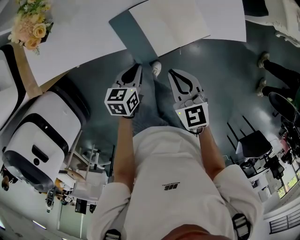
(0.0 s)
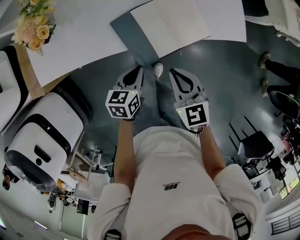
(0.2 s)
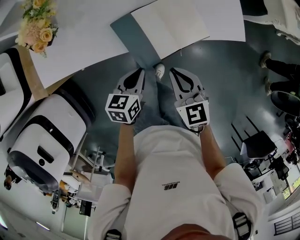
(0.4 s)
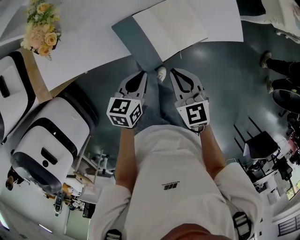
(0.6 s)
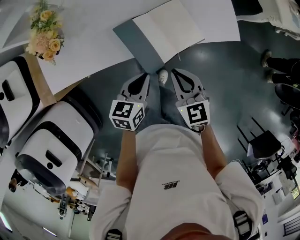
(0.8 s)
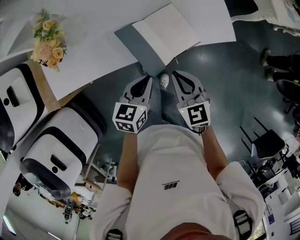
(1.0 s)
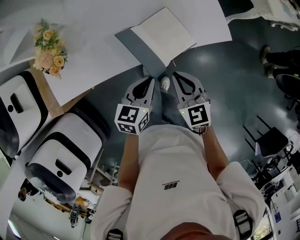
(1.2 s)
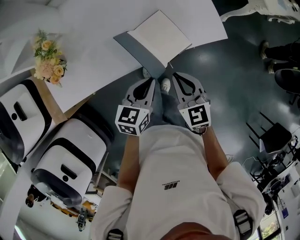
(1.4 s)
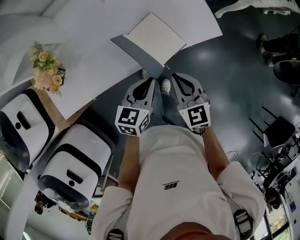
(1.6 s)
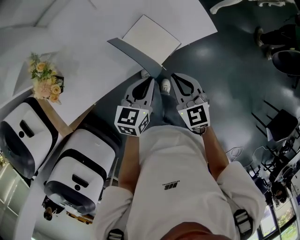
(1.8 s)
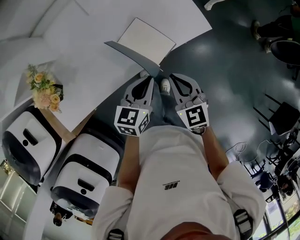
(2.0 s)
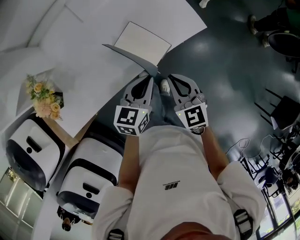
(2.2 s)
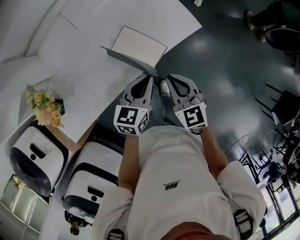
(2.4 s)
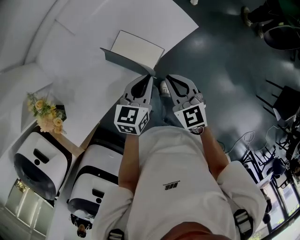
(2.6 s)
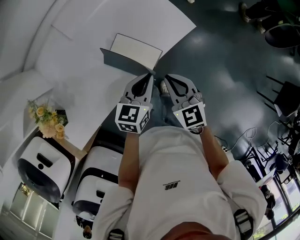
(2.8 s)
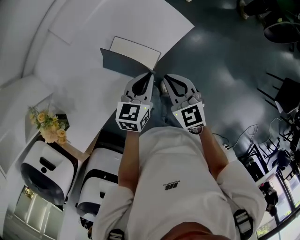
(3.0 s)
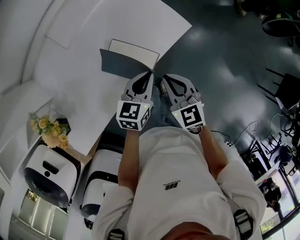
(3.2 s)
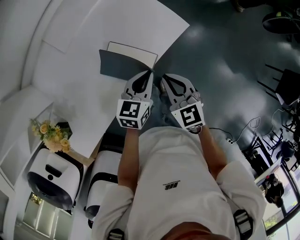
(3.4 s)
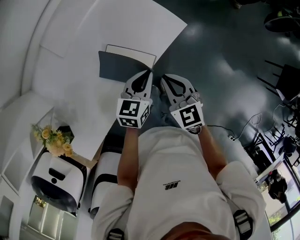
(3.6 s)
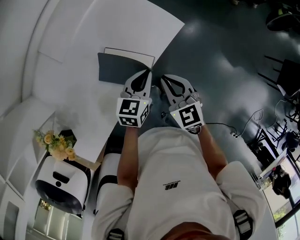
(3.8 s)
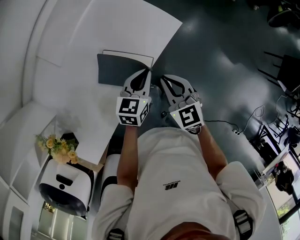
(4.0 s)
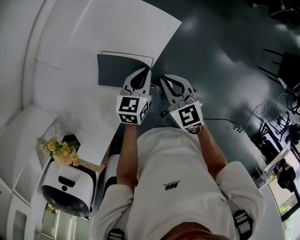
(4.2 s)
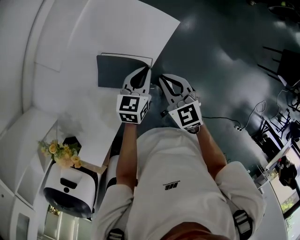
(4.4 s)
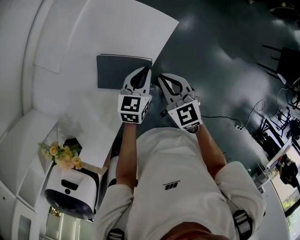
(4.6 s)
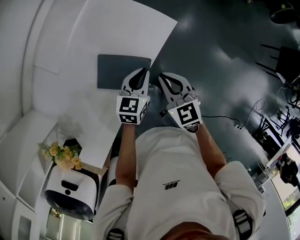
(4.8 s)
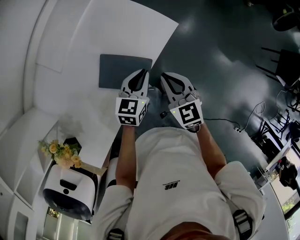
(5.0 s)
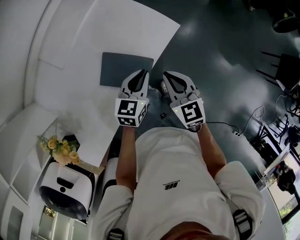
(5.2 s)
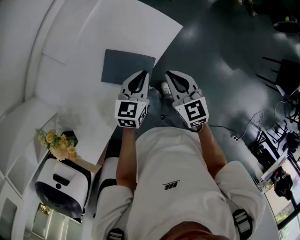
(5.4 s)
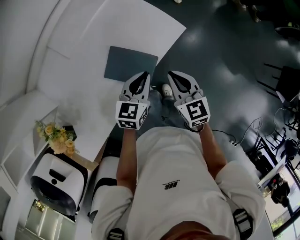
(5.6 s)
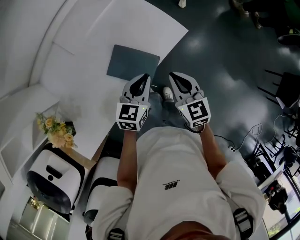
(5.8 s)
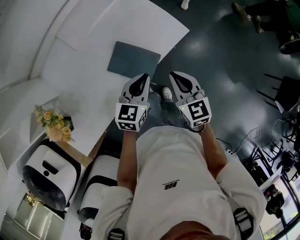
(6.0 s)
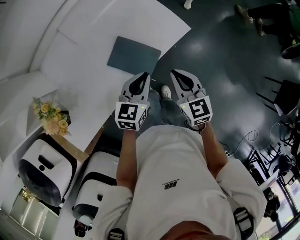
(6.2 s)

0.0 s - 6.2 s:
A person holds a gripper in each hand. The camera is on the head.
0.0 s - 1.6 s: The right gripper travels upward and to the right by some 10 cm; the left gripper is displaced upward and to the right by some 20 cm, and rotates roughly 30 degrees.
1.6 s - 3.2 s: The right gripper moves forward and to the right, some 10 cm, while the left gripper goes approximately 15 cm forward and to the right, and turns by about 20 degrees.
3.2 s - 4.6 s: The left gripper shifts by approximately 5 cm.
4.6 s - 6.2 s: The right gripper moves upward, about 5 cm. The left gripper moves upward and backward, approximately 10 cm.

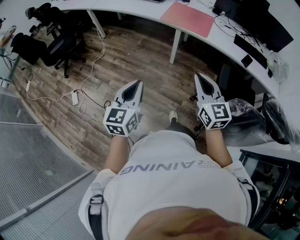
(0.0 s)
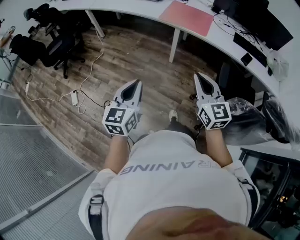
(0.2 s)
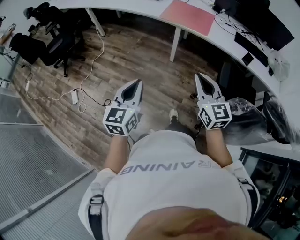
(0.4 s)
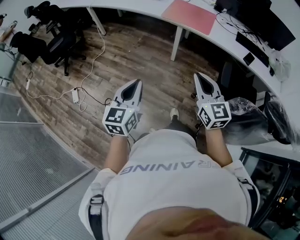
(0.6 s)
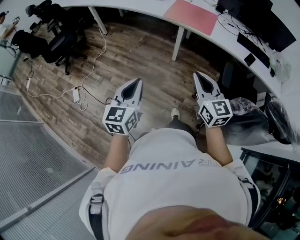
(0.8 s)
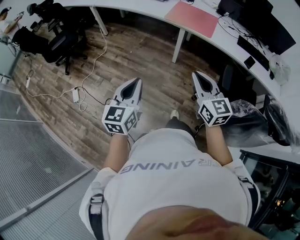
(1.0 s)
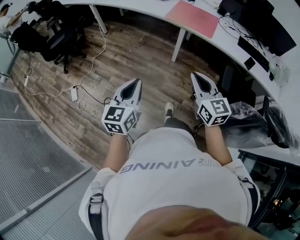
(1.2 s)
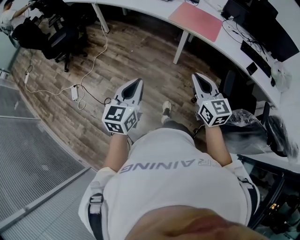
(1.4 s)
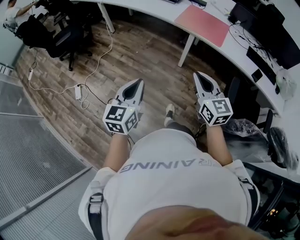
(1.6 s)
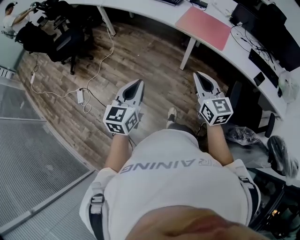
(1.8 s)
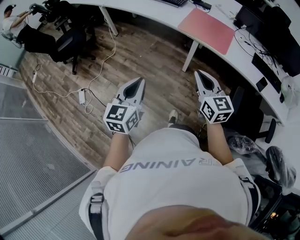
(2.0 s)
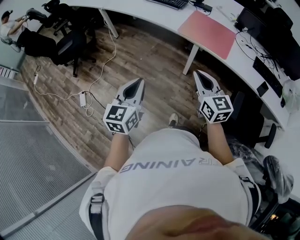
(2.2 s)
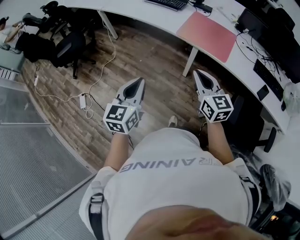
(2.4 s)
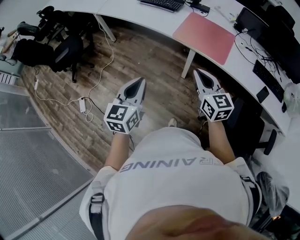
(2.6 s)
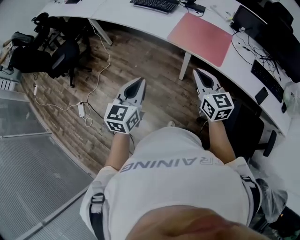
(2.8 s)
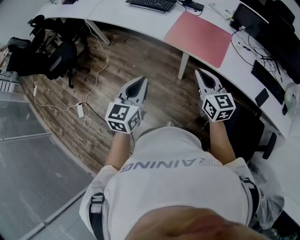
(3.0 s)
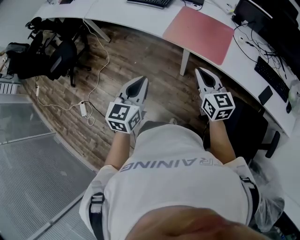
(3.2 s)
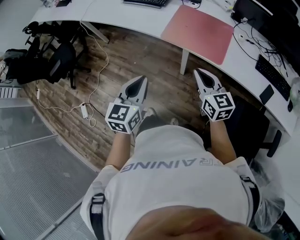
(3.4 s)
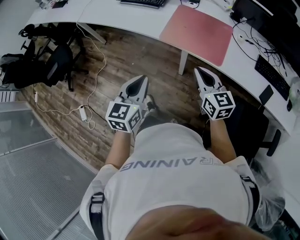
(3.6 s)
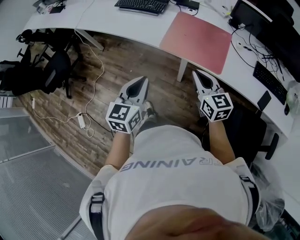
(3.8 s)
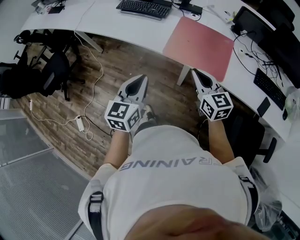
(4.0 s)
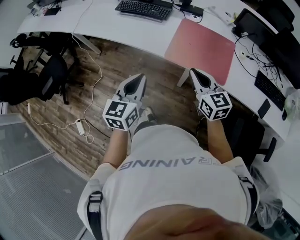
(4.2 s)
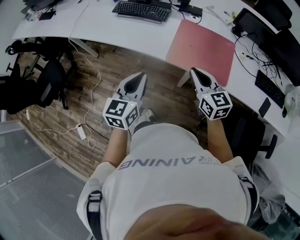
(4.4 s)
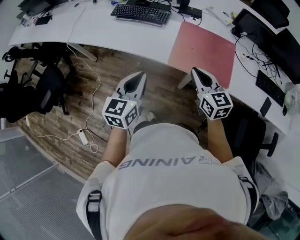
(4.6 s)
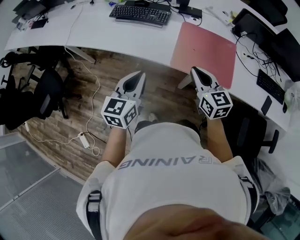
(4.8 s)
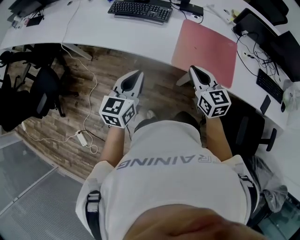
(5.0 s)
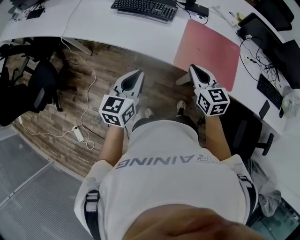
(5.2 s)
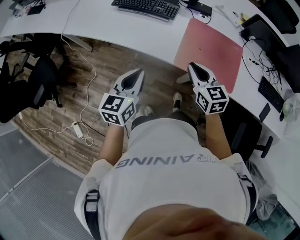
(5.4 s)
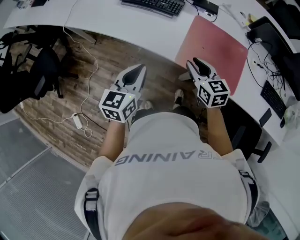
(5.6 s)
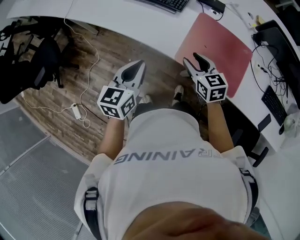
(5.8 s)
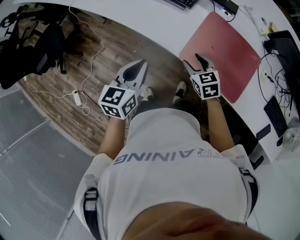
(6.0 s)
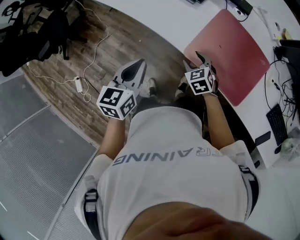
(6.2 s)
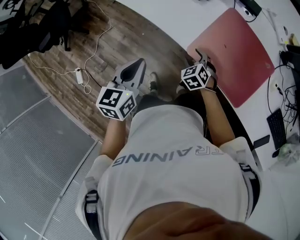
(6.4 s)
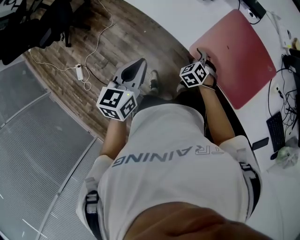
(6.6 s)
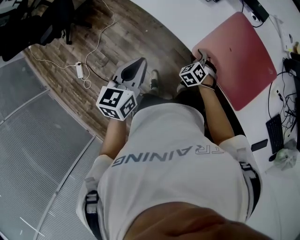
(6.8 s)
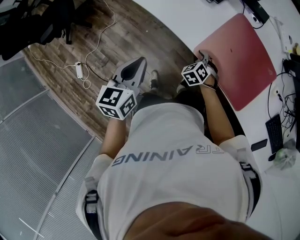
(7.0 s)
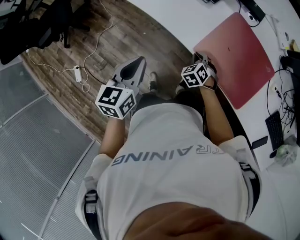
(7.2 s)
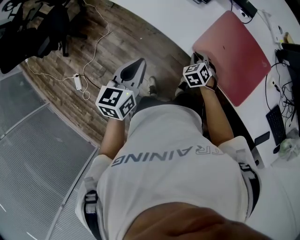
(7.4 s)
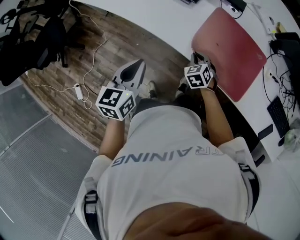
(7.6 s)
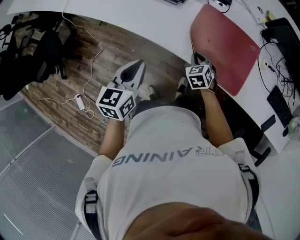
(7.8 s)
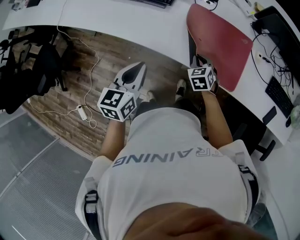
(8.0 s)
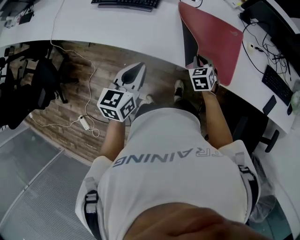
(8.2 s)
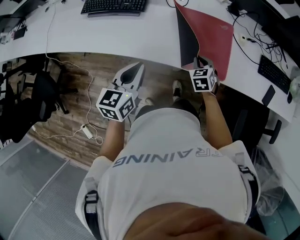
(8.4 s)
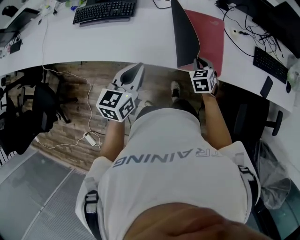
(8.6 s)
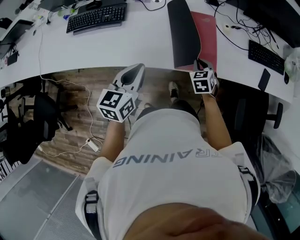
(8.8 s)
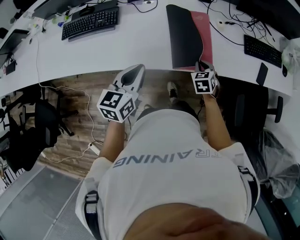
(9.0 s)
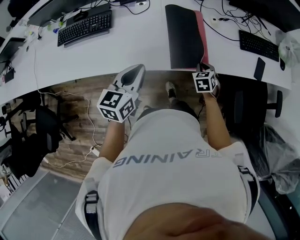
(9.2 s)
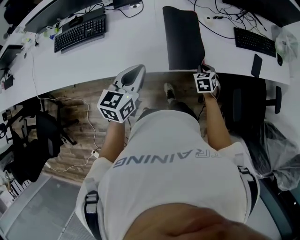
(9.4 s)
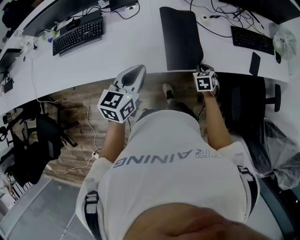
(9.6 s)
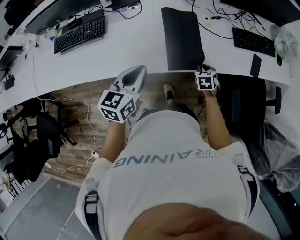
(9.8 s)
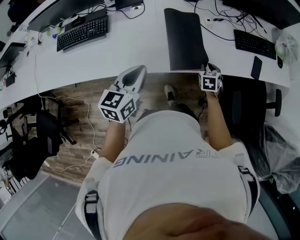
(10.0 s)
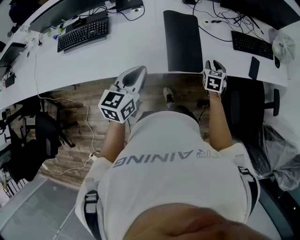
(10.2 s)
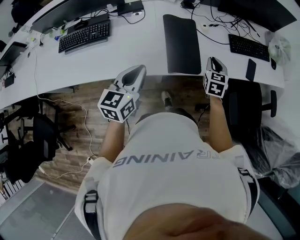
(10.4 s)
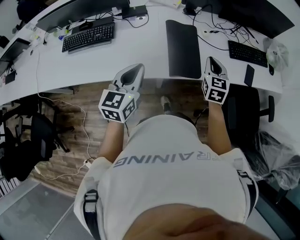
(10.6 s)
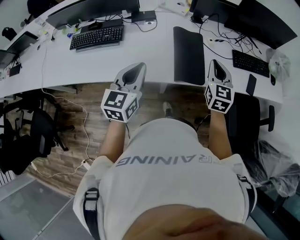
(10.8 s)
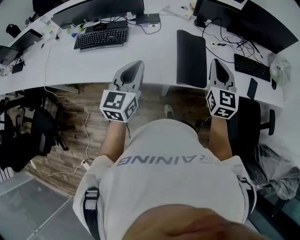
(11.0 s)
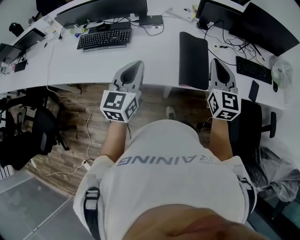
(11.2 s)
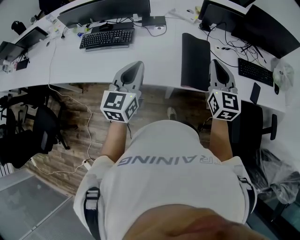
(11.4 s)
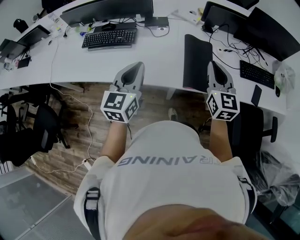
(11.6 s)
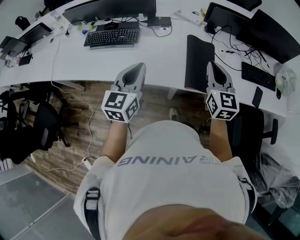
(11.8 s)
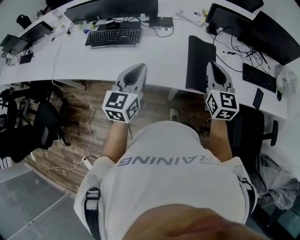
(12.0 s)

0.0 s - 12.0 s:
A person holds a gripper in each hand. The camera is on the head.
0.0 s - 1.6 s: The right gripper shifts approximately 10 cm forward and to the left. The left gripper is displaced forward by approximately 5 cm.
1.6 s - 3.0 s: The two grippers go roughly 30 cm forward and to the right.
3.0 s - 4.4 s: The right gripper moves forward and to the left, some 20 cm. Meanwhile the left gripper goes about 25 cm forward.
4.4 s - 6.0 s: The right gripper heads downward and forward, covering roughly 25 cm, changes its angle by some 30 degrees, and opens up; the left gripper shifts some 15 cm forward and downward.
6.0 s - 7.6 s: The right gripper travels downward by roughly 10 cm, rotates roughly 20 degrees, and closes.
7.6 s - 9.0 s: The right gripper ends up some 30 cm from where it was, and swivels some 40 degrees. Meanwhile the left gripper changes place by roughly 20 cm, and turns by approximately 40 degrees.
9.0 s - 10.4 s: The left gripper ends up approximately 5 cm from where it was; the right gripper moves upward and to the right, approximately 15 cm, and rotates approximately 30 degrees.
10.4 s - 12.0 s: The right gripper heads upward and to the left, covering about 25 cm, and swivels approximately 30 degrees; the left gripper is displaced to the left and upward by approximately 10 cm.

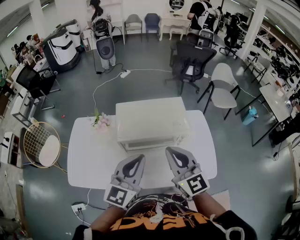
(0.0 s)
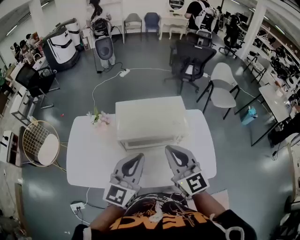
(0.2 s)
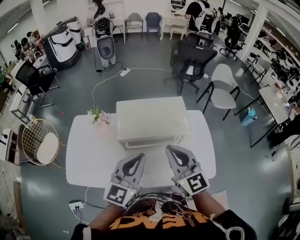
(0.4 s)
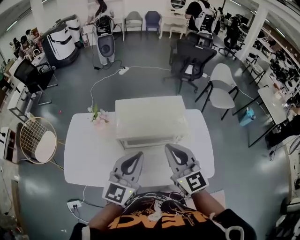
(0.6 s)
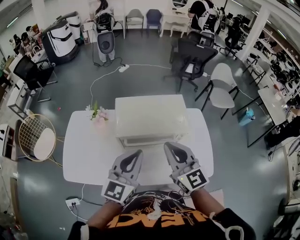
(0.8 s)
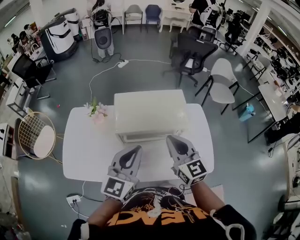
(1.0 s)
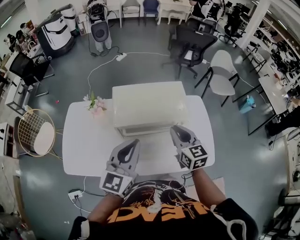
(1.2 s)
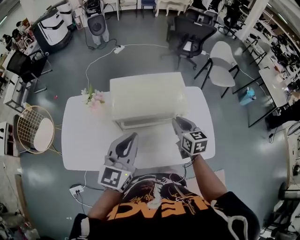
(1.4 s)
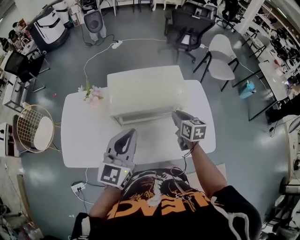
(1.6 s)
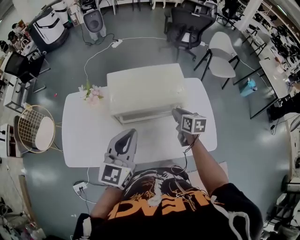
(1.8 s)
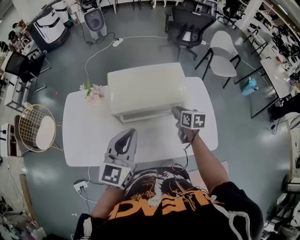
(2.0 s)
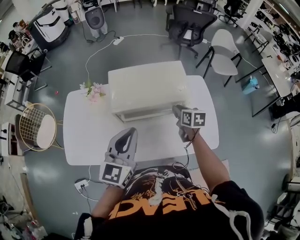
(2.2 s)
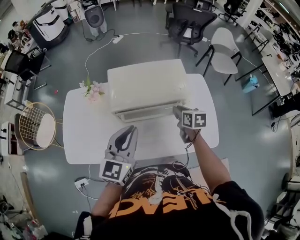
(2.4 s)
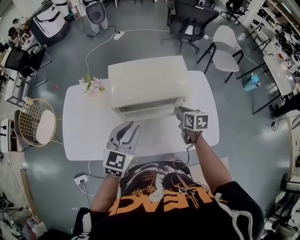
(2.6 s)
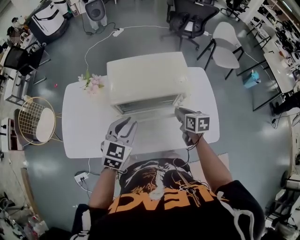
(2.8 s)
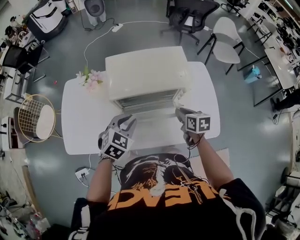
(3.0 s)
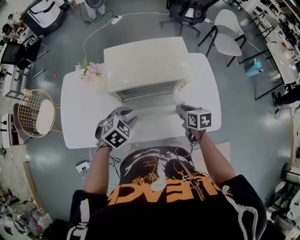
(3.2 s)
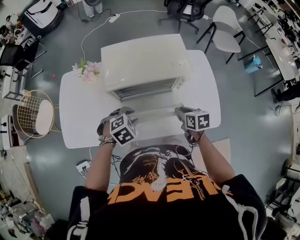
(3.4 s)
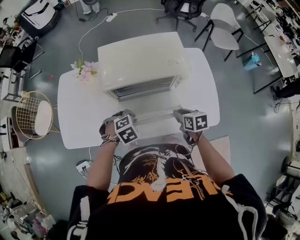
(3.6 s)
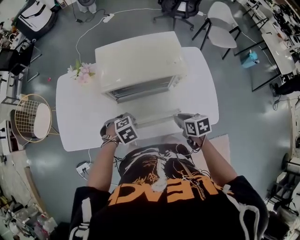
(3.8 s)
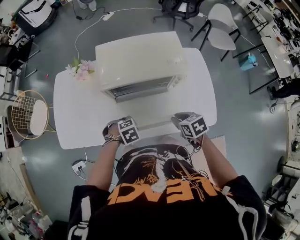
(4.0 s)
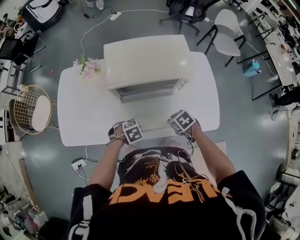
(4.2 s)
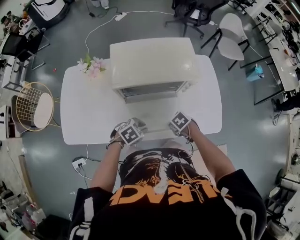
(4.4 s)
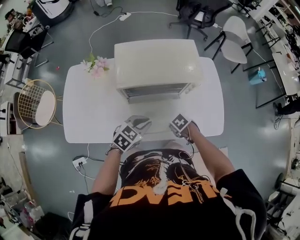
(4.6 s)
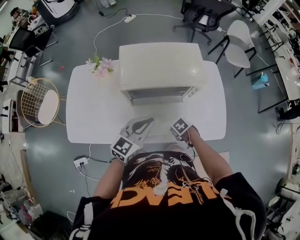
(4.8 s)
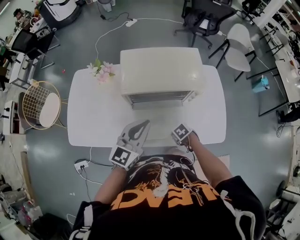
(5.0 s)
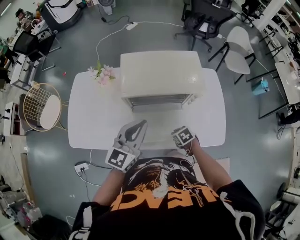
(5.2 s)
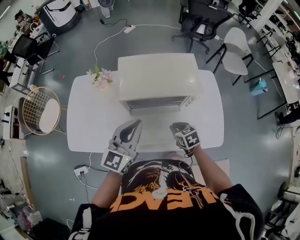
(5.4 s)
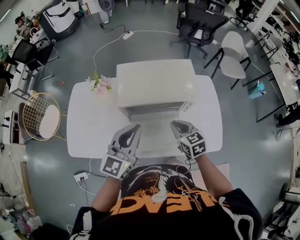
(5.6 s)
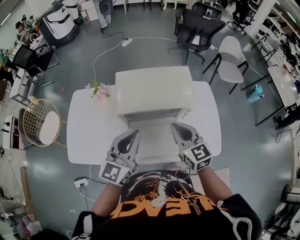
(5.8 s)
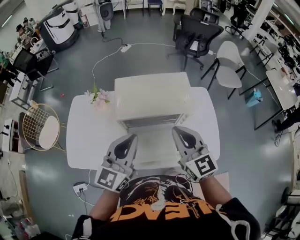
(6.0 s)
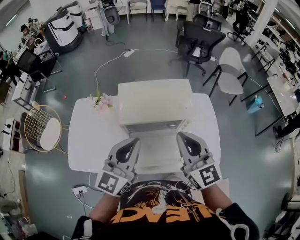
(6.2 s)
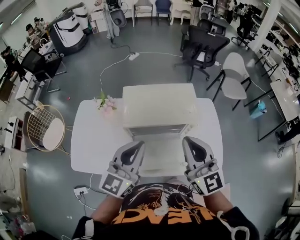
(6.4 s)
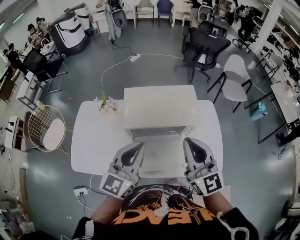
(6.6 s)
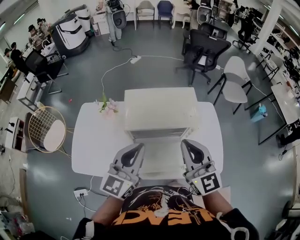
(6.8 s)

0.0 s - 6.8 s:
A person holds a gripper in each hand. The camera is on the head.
0.0 s - 1.4 s: The right gripper travels downward, forward and to the right by about 20 cm, and swivels roughly 30 degrees.
1.4 s - 2.8 s: Both grippers move downward, some 10 cm. The right gripper swivels roughly 20 degrees. The left gripper rotates some 30 degrees, and opens.
2.8 s - 4.0 s: The left gripper heads downward, covering about 20 cm, and tips its fingers downward by roughly 50 degrees. Meanwhile the right gripper changes place by about 10 cm, and rotates roughly 30 degrees.
4.0 s - 5.4 s: The left gripper shifts about 25 cm upward, points its fingers roughly 70 degrees further upward, and closes its fingers, while the right gripper goes downward and returns, roughly 15 cm each way.
5.4 s - 6.8 s: The left gripper goes about 10 cm upward; the right gripper is displaced upward by some 30 cm, and points its fingers roughly 50 degrees further upward.
